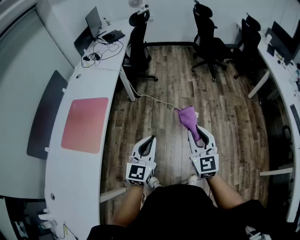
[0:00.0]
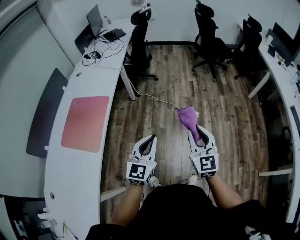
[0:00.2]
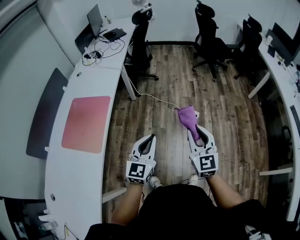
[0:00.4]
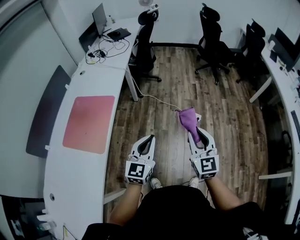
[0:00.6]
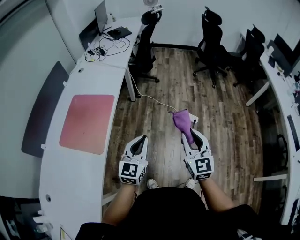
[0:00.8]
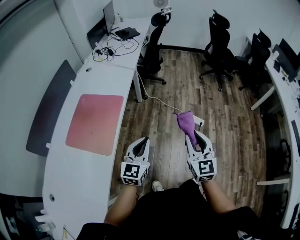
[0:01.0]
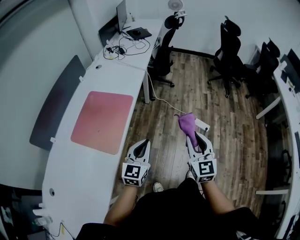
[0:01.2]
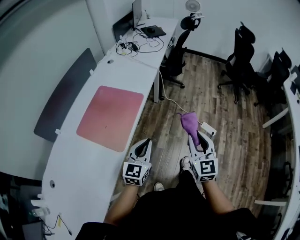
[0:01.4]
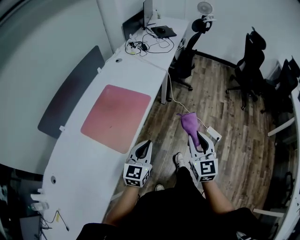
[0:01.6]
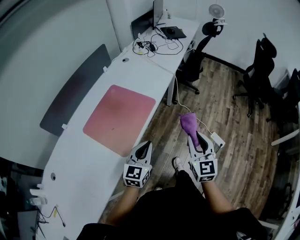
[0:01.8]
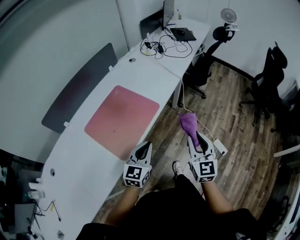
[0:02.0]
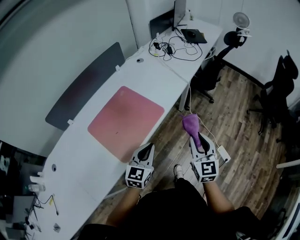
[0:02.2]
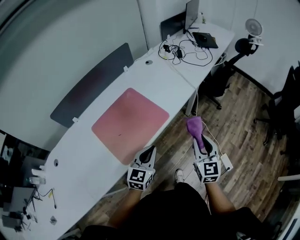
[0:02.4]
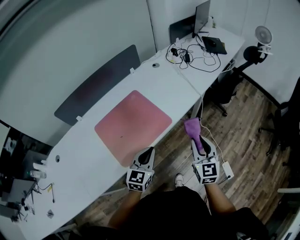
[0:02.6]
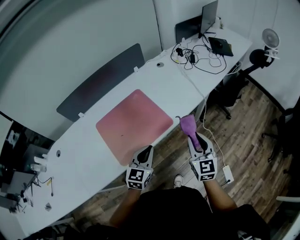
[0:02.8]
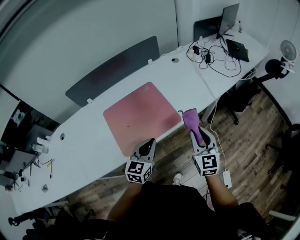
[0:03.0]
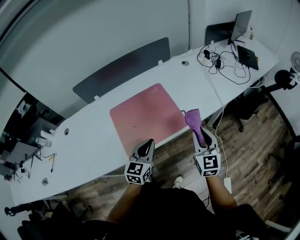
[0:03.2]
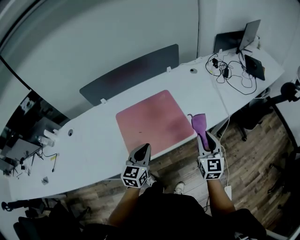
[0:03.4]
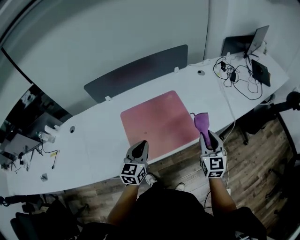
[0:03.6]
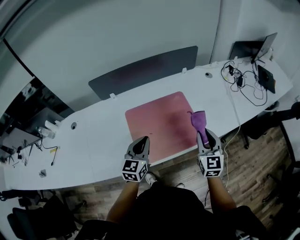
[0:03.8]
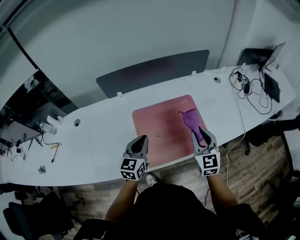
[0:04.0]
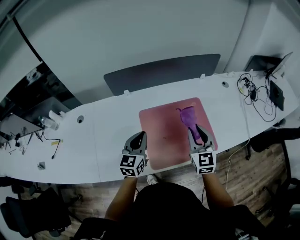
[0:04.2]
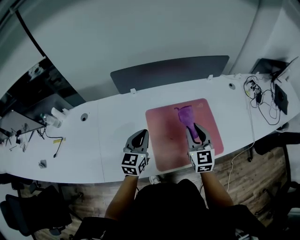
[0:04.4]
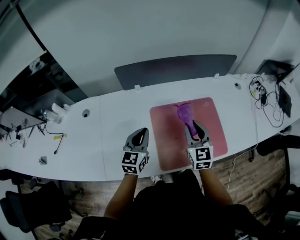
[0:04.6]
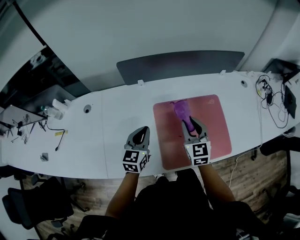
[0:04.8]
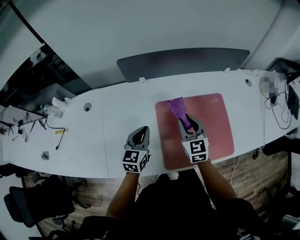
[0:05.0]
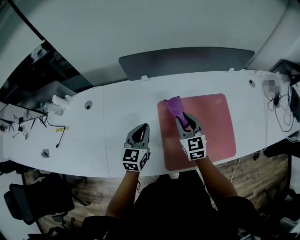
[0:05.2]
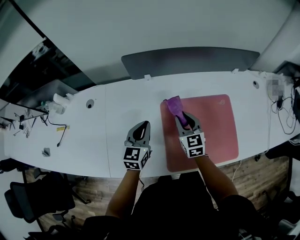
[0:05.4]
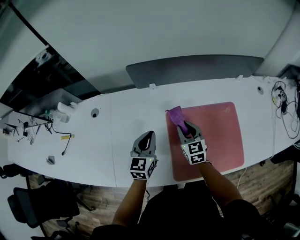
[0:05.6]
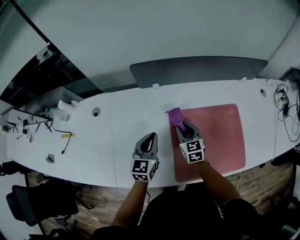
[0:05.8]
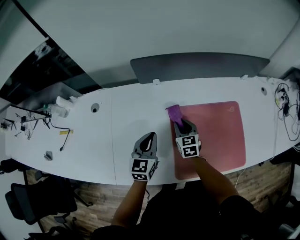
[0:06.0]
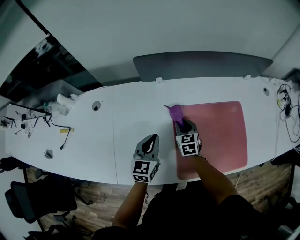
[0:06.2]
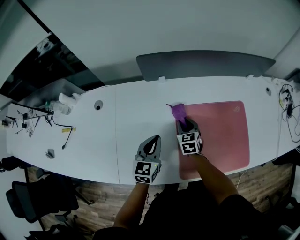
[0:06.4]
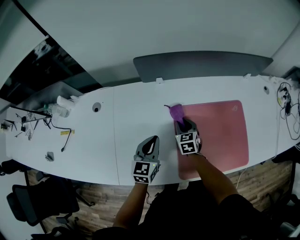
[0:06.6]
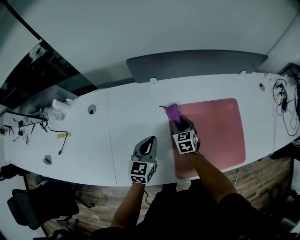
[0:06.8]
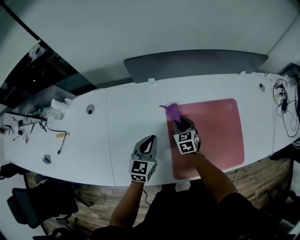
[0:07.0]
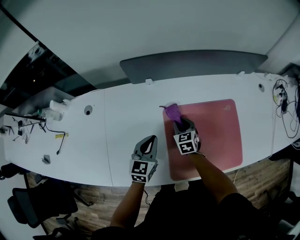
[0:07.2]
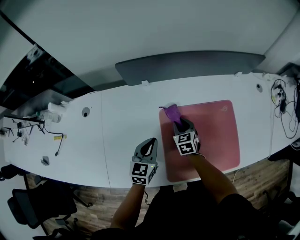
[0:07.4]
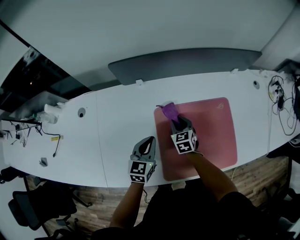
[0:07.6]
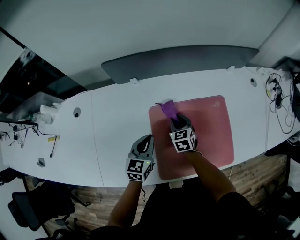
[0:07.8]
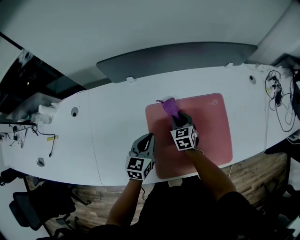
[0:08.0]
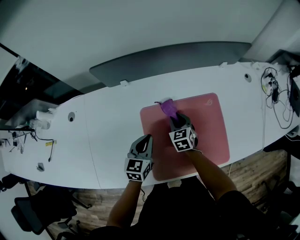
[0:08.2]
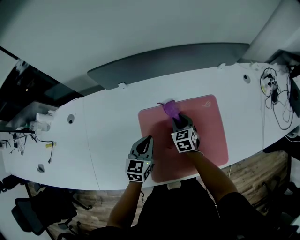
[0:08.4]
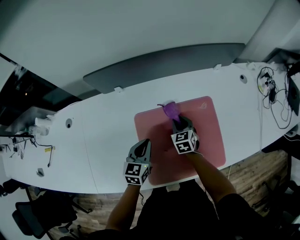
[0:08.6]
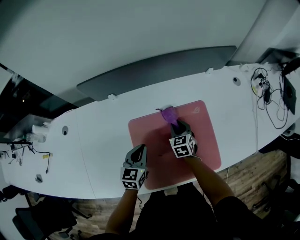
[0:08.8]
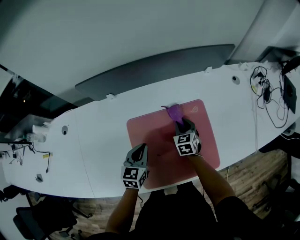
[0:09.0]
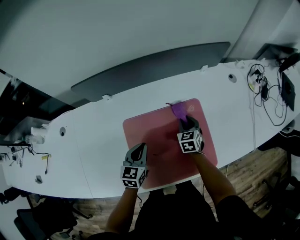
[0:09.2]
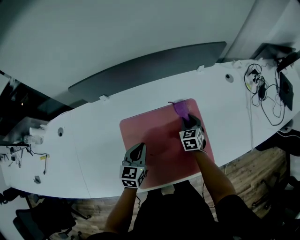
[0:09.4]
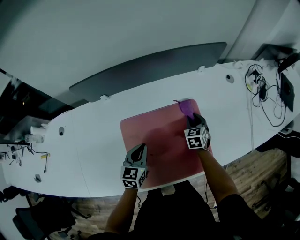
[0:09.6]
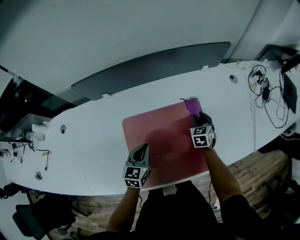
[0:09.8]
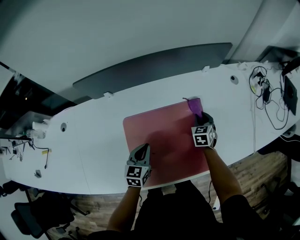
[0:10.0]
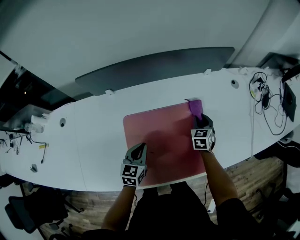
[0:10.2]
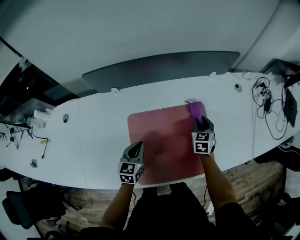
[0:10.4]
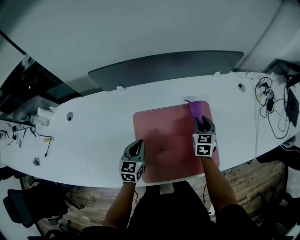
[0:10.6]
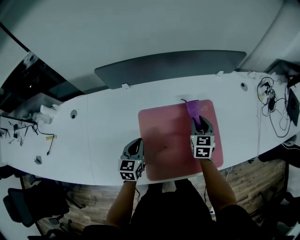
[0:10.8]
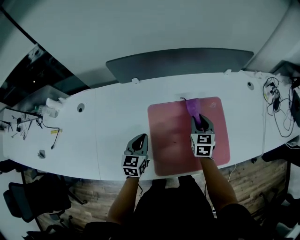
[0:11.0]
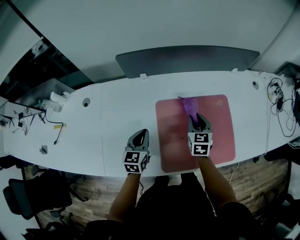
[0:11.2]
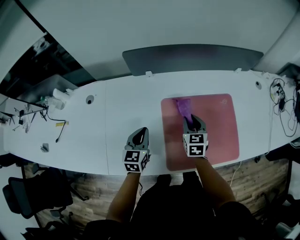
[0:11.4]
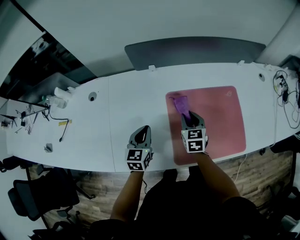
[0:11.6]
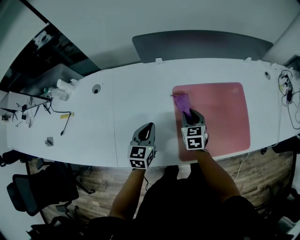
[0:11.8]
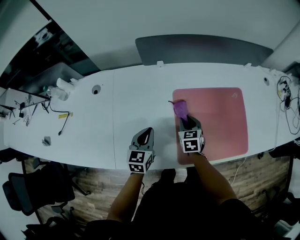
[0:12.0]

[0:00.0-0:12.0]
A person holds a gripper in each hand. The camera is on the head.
0:00.0 to 0:01.6: Both grippers travel together to the left, roughly 25 cm.
0:01.6 to 0:03.0: The right gripper changes place by roughly 30 cm, and rotates approximately 40 degrees; the left gripper shifts by some 15 cm, and swivels some 40 degrees.
0:03.0 to 0:04.4: Both grippers move to the left and forward, about 35 cm. The left gripper changes its angle by approximately 30 degrees, while the right gripper swivels approximately 20 degrees.
0:04.4 to 0:06.0: The right gripper travels downward, to the left and forward by about 30 cm, and swivels roughly 20 degrees, while the left gripper goes roughly 10 cm to the left and downward.
0:06.0 to 0:07.6: The grippers both shift to the right by approximately 5 cm.
0:07.6 to 0:09.0: The right gripper heads to the right, covering some 15 cm. Meanwhile the left gripper goes about 10 cm to the right.
0:09.0 to 0:10.4: The right gripper heads to the right, covering approximately 10 cm.
0:10.4 to 0:12.0: The left gripper heads to the left and backward, covering about 20 cm; the right gripper heads to the left and backward, covering roughly 35 cm.

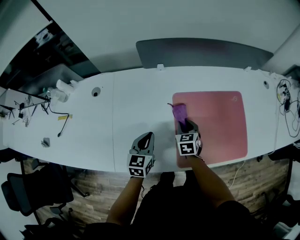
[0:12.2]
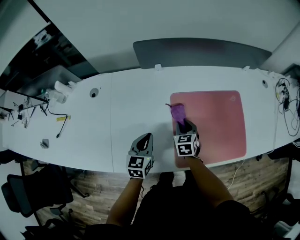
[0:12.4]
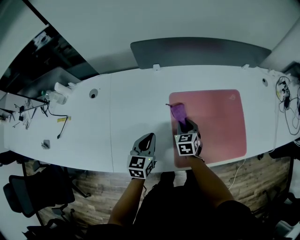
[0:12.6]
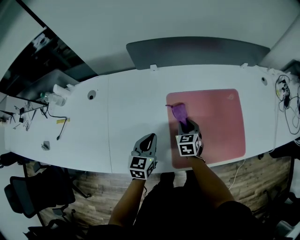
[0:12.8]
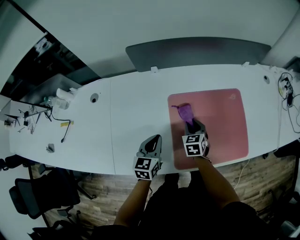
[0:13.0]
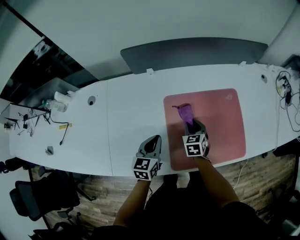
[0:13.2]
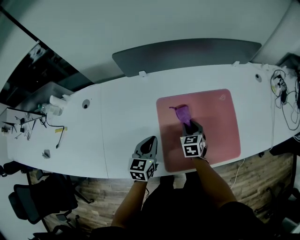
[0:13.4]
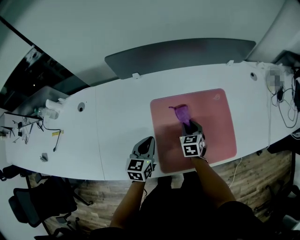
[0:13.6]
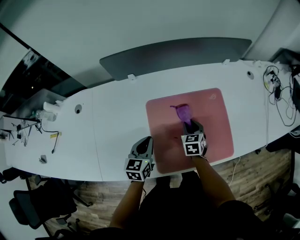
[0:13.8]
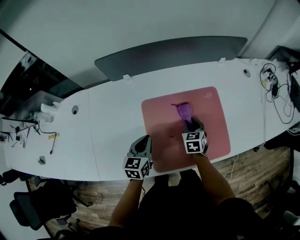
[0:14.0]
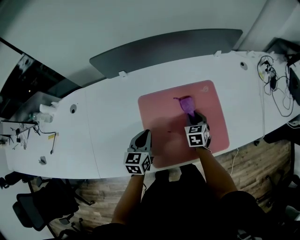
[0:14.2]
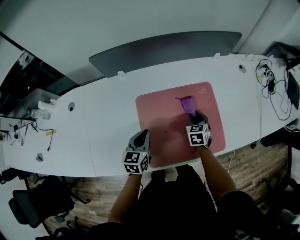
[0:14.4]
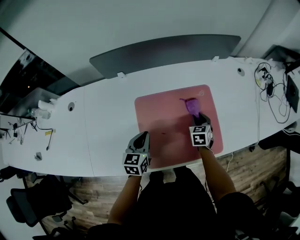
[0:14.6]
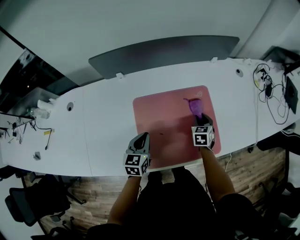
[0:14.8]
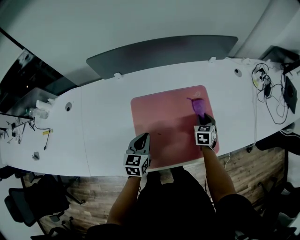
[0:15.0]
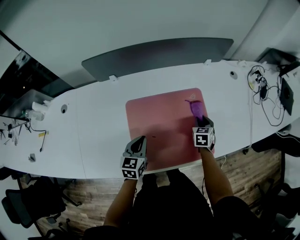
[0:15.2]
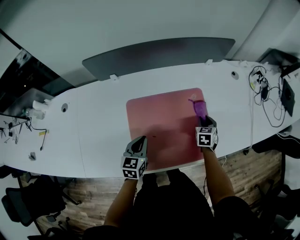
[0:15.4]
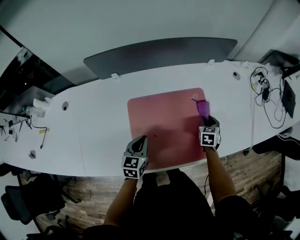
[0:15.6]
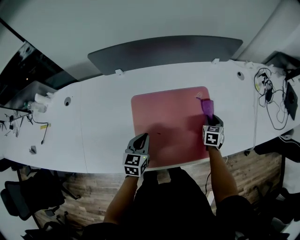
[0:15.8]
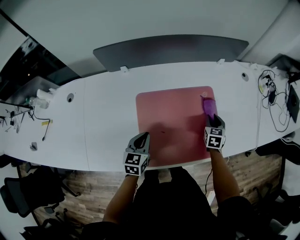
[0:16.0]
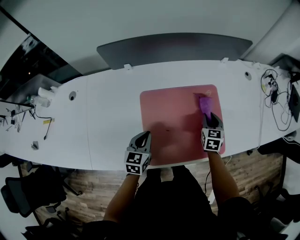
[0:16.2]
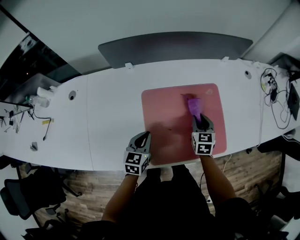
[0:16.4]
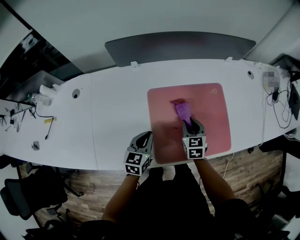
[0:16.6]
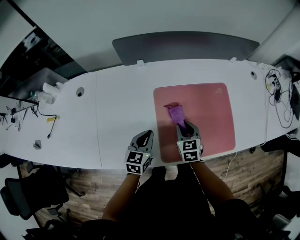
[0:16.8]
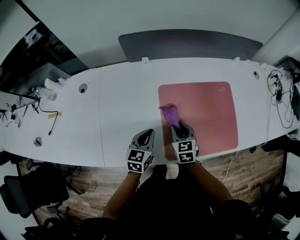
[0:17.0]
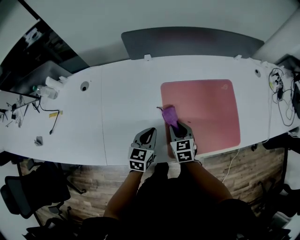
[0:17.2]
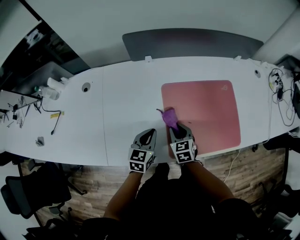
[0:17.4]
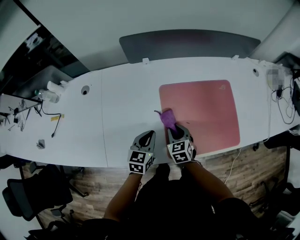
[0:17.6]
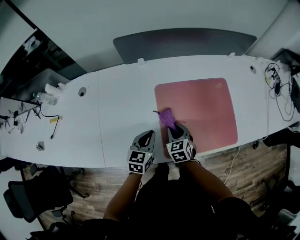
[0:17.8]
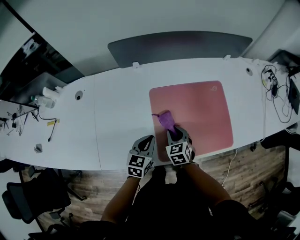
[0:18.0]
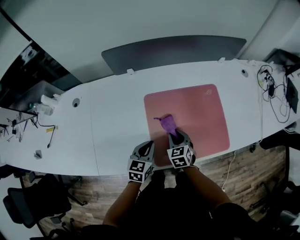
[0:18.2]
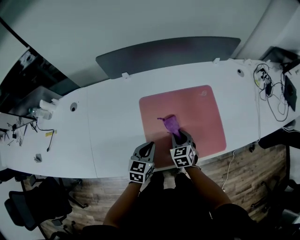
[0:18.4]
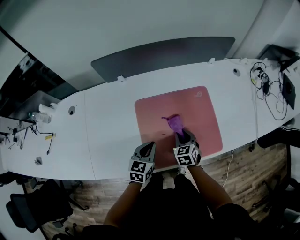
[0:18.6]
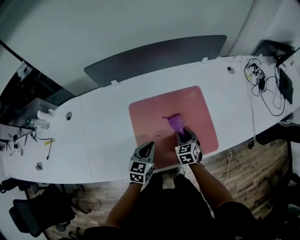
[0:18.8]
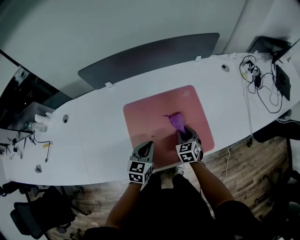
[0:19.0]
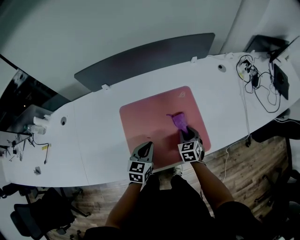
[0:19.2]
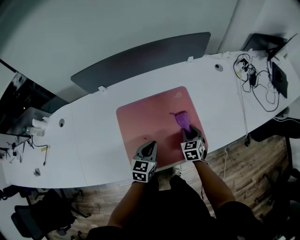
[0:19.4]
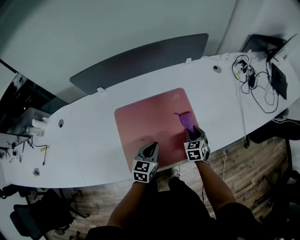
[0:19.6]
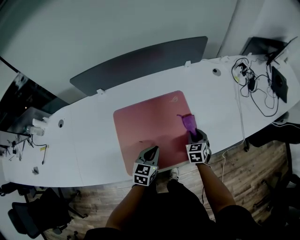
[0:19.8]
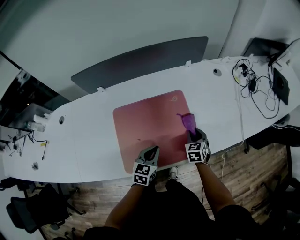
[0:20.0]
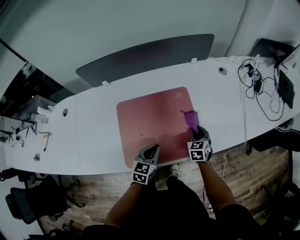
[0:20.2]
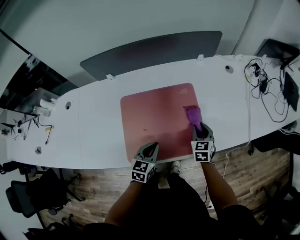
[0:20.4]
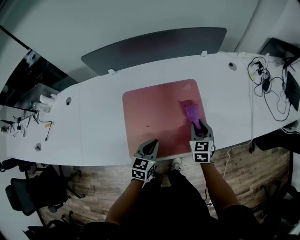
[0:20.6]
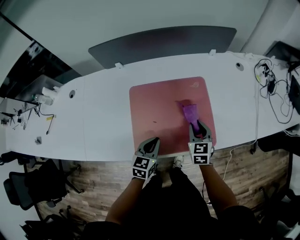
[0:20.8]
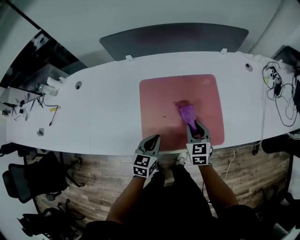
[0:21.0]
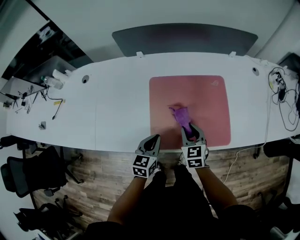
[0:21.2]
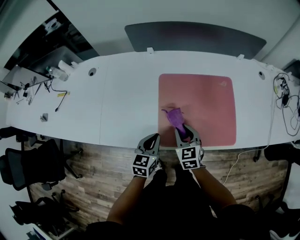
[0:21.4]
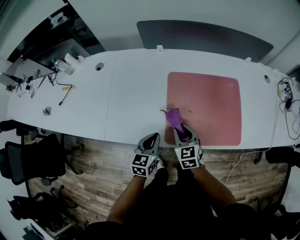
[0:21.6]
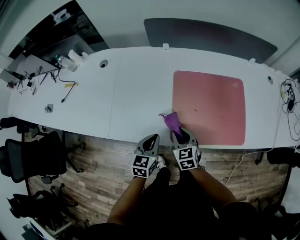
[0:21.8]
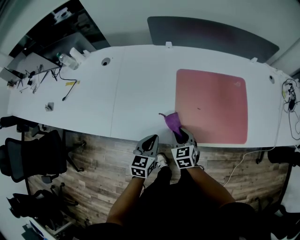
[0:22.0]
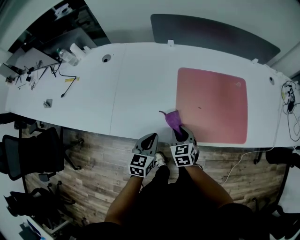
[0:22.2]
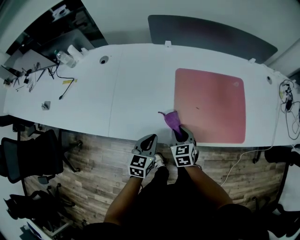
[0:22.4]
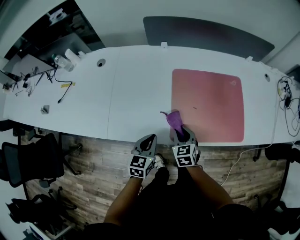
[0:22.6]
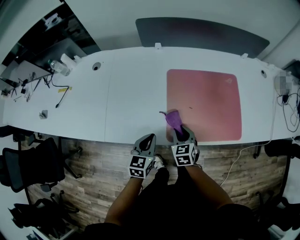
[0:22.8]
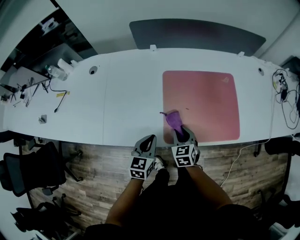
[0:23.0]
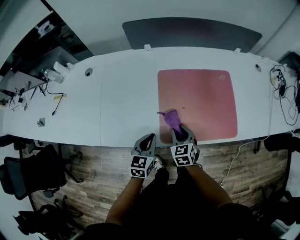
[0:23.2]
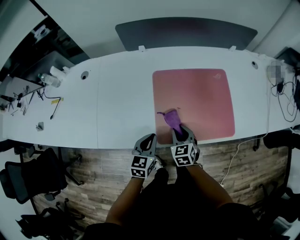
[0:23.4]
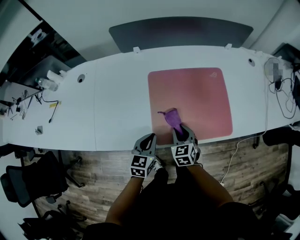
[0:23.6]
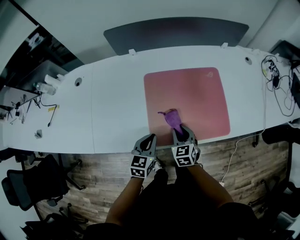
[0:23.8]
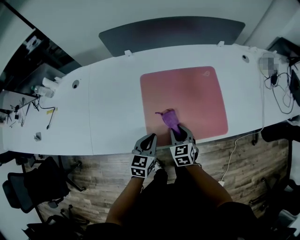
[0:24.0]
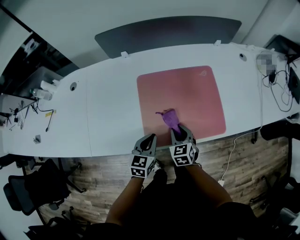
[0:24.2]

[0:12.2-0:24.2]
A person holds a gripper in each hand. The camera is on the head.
0:12.2 to 0:13.8: Both grippers move to the right, approximately 15 cm.
0:13.8 to 0:15.2: The right gripper shifts approximately 20 cm to the right. Meanwhile the left gripper heads to the right, covering approximately 10 cm.
0:15.2 to 0:16.6: The left gripper moves to the left, roughly 5 cm, while the right gripper heads to the left and backward, covering roughly 20 cm.
0:16.6 to 0:18.2: The right gripper moves to the left and backward, approximately 10 cm.
0:18.2 to 0:19.8: Both grippers move to the right, about 25 cm.
0:19.8 to 0:21.2: Both grippers move to the left and backward, some 20 cm. The right gripper rotates some 20 degrees.
0:21.2 to 0:22.6: The two grippers go approximately 15 cm to the left.
0:22.6 to 0:24.2: The right gripper moves to the right, about 10 cm, while the left gripper is displaced to the right and forward by about 15 cm.
